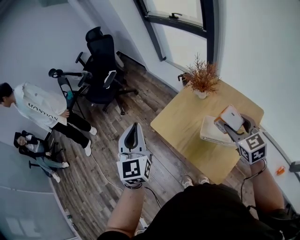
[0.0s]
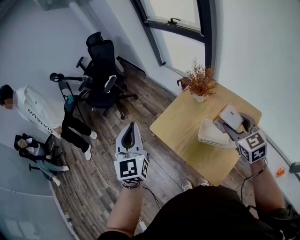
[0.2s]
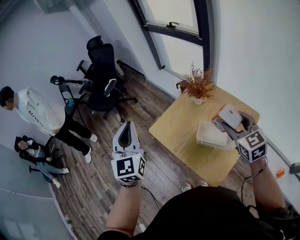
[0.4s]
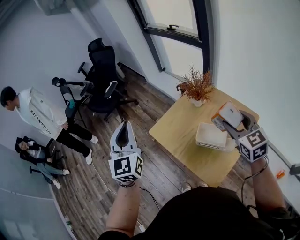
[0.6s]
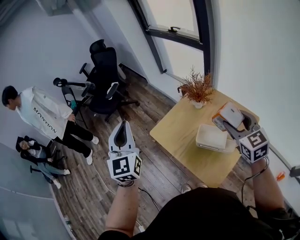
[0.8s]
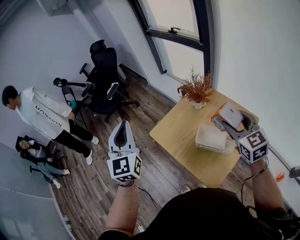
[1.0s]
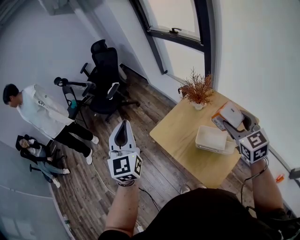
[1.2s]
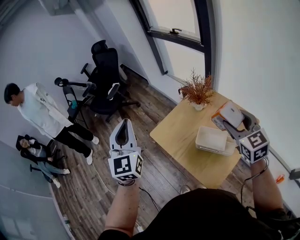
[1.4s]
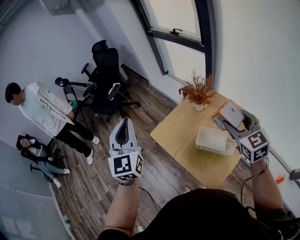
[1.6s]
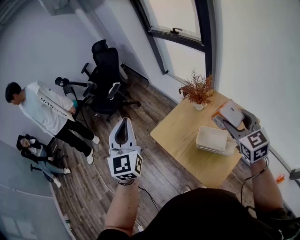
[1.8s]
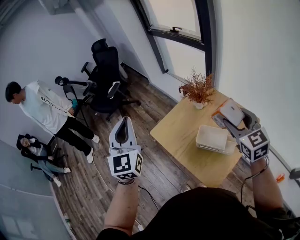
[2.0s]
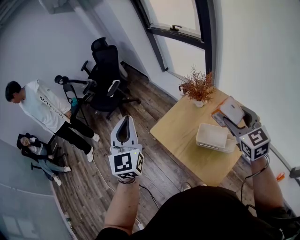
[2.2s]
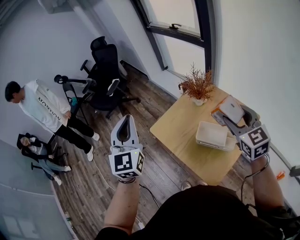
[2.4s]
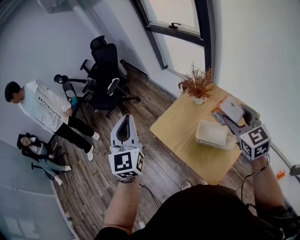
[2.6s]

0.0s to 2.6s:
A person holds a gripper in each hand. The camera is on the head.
0.0s to 1.2s: The grippers both shift upward by some 10 cm.
1.2s to 2.6s: There are only small adjustments of the grippers.

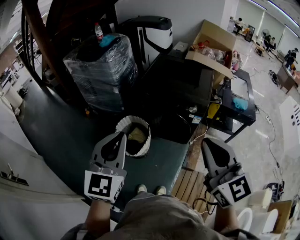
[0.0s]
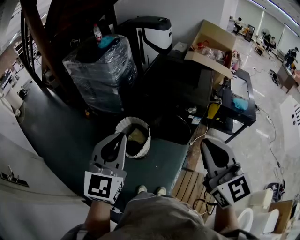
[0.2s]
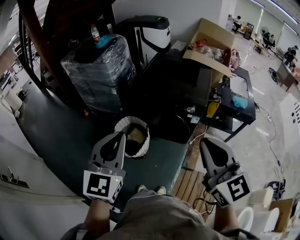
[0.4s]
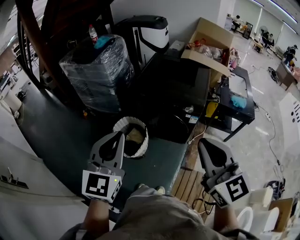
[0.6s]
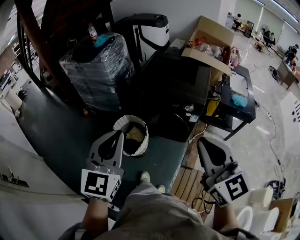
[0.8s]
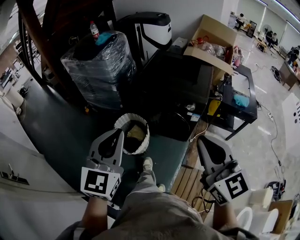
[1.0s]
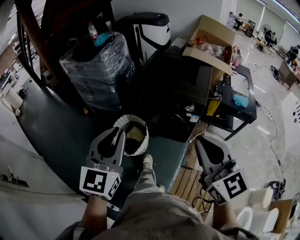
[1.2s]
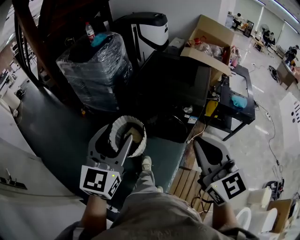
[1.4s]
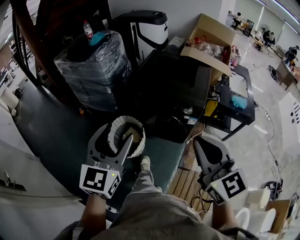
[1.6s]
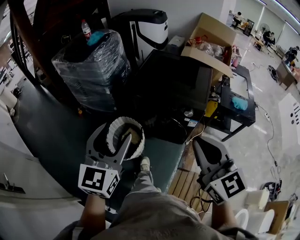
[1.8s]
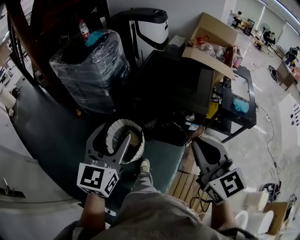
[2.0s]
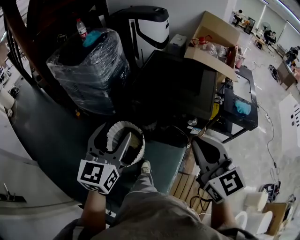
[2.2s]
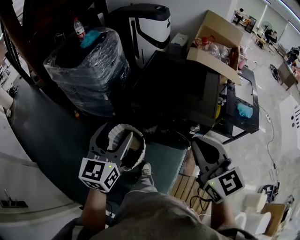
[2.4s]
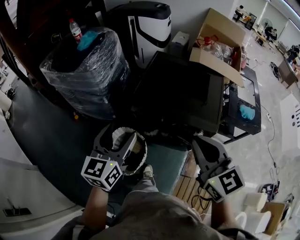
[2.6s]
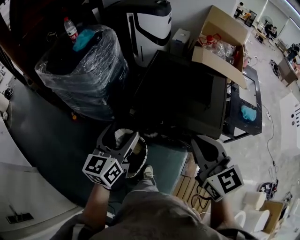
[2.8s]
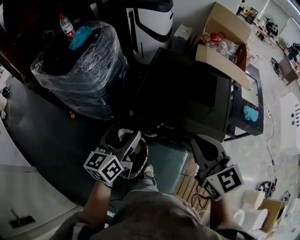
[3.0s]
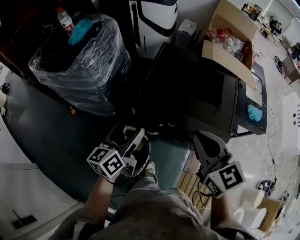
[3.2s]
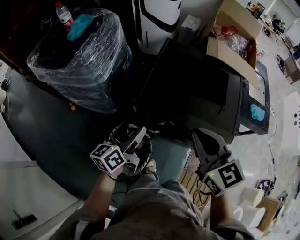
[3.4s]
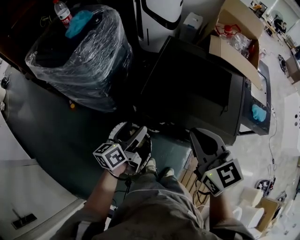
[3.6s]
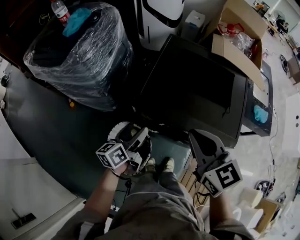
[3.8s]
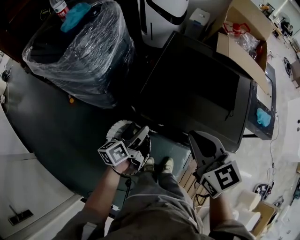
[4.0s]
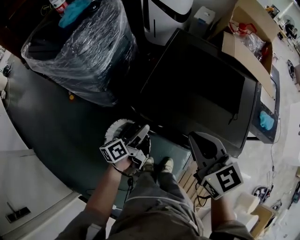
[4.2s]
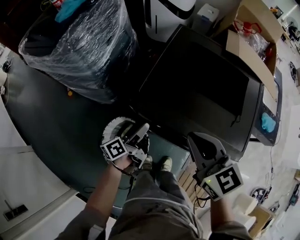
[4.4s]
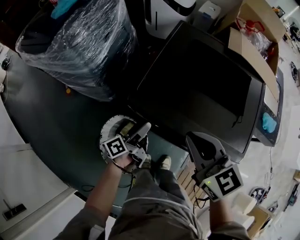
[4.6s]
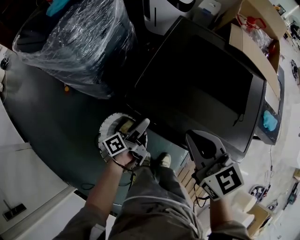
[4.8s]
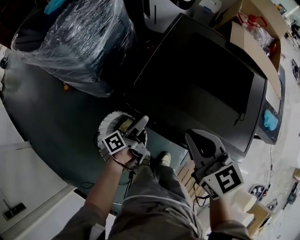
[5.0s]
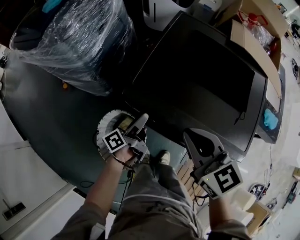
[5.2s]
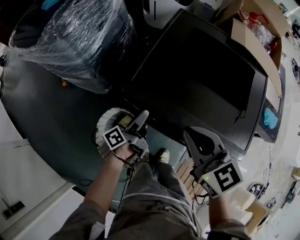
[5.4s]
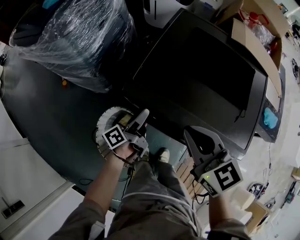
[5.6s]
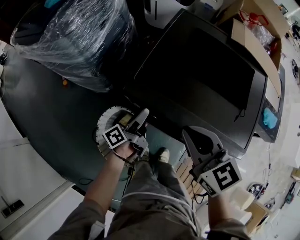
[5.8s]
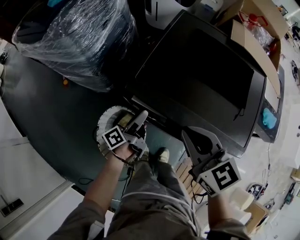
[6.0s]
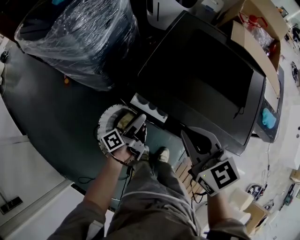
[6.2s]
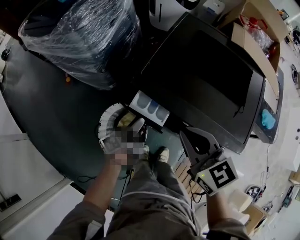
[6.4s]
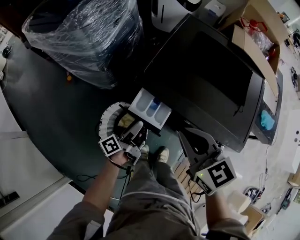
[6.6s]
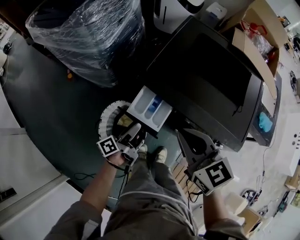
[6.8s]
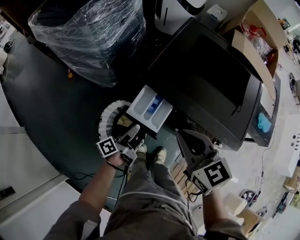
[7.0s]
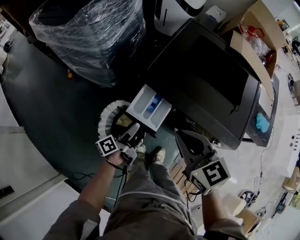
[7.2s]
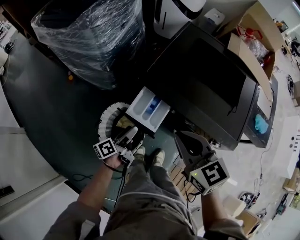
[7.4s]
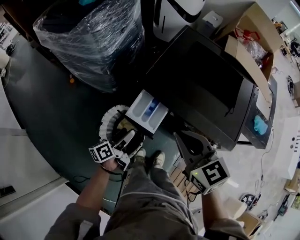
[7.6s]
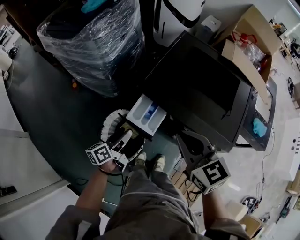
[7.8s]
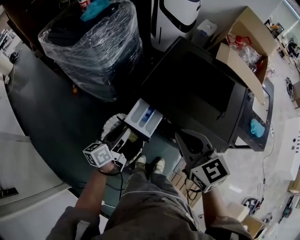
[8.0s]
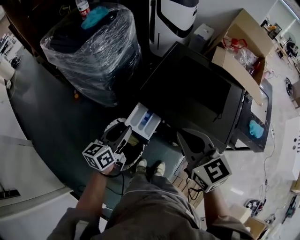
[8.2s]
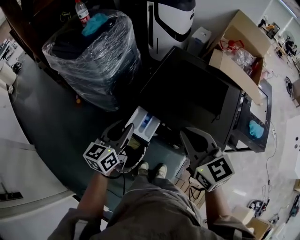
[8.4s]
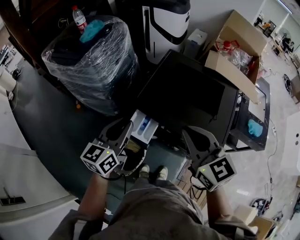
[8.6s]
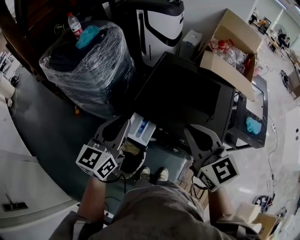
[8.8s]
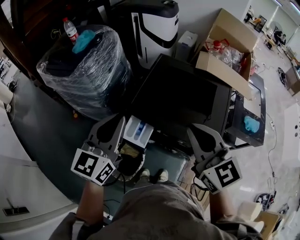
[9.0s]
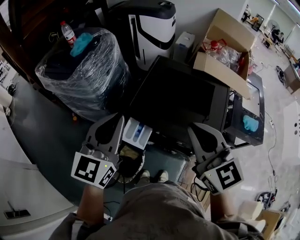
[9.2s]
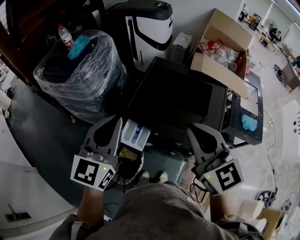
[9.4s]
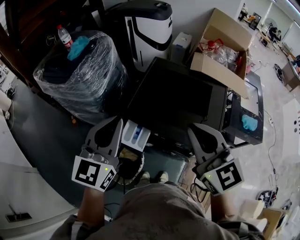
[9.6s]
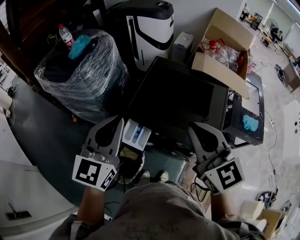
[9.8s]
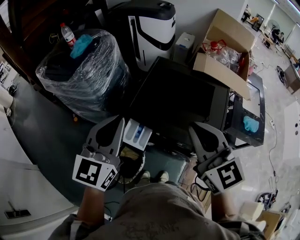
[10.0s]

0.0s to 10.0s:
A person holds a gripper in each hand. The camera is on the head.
0.0s to 1.4s: The right gripper ends up roughly 5 cm from where it was; the left gripper goes approximately 5 cm forward, and opens its fingers.
1.4s to 2.8s: Both grippers travel together forward, some 30 cm. The left gripper turns by some 30 degrees.
2.8s to 4.2s: The right gripper moves forward and downward, about 20 cm, while the left gripper heads downward and forward, covering about 30 cm, and twists about 50 degrees counterclockwise, seen from behind.
4.2s to 5.8s: The two grippers go approximately 5 cm downward. The left gripper turns by roughly 20 degrees.
5.8s to 7.2s: The right gripper shifts about 10 cm backward, while the left gripper is displaced backward and to the left by approximately 15 cm.
7.2s to 8.6s: The left gripper is displaced upward by some 30 cm, rolls clockwise, seen from behind, by approximately 70 degrees, and closes up. Meanwhile the right gripper travels upward and to the right by approximately 15 cm.
8.6s to 10.0s: The left gripper travels upward by some 15 cm, and swivels approximately 20 degrees, while the right gripper is displaced upward by some 10 cm.

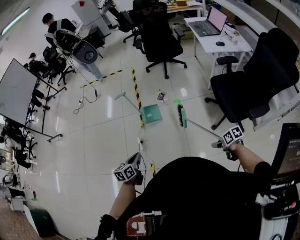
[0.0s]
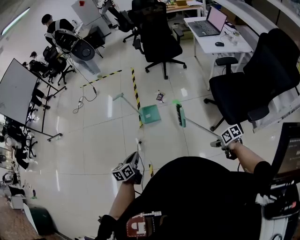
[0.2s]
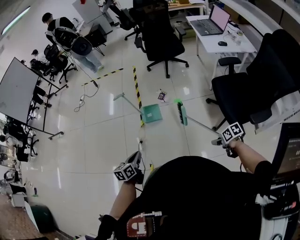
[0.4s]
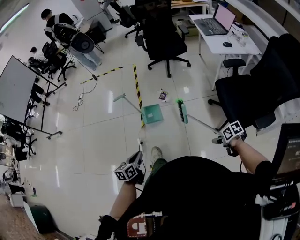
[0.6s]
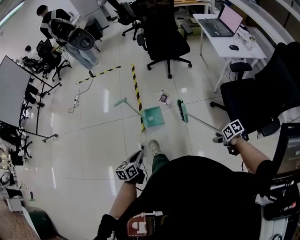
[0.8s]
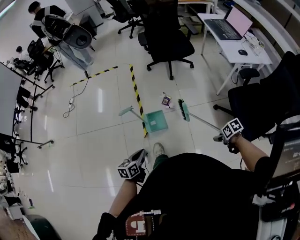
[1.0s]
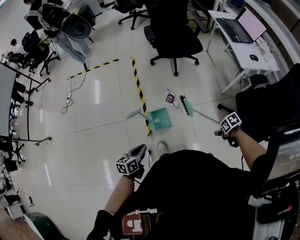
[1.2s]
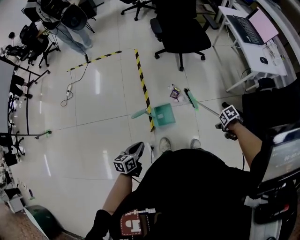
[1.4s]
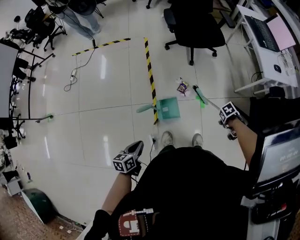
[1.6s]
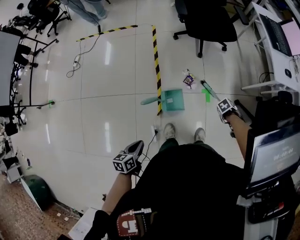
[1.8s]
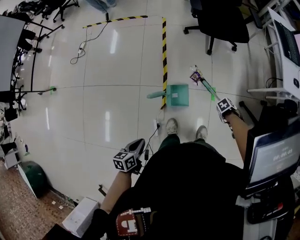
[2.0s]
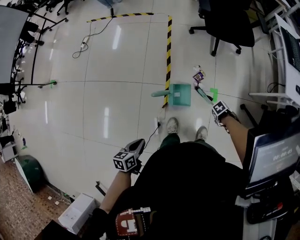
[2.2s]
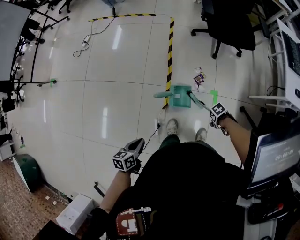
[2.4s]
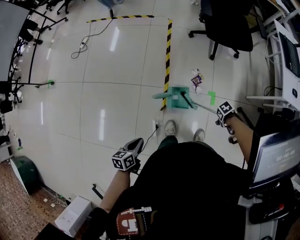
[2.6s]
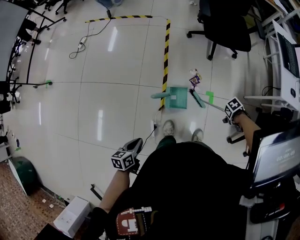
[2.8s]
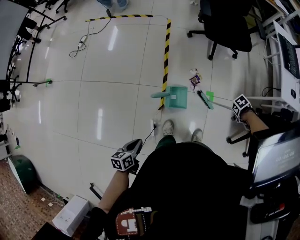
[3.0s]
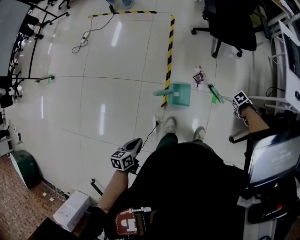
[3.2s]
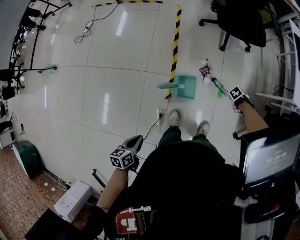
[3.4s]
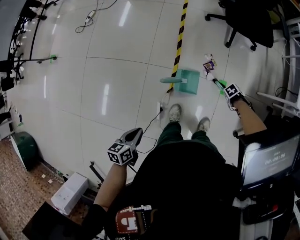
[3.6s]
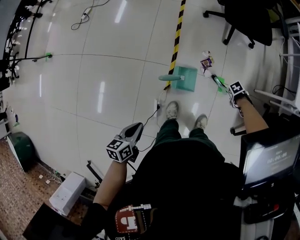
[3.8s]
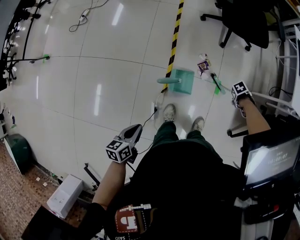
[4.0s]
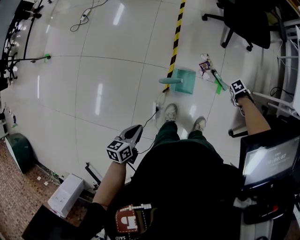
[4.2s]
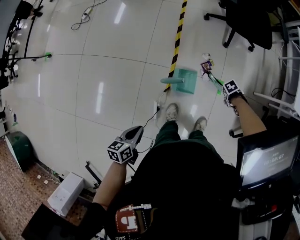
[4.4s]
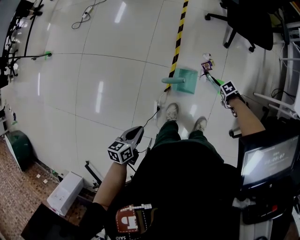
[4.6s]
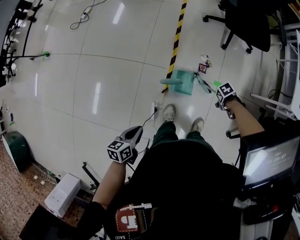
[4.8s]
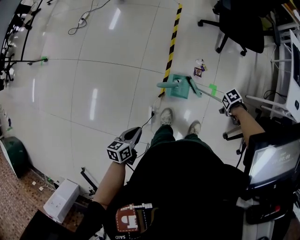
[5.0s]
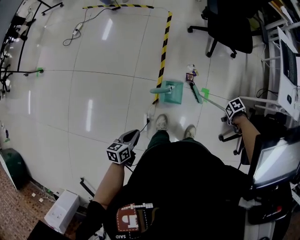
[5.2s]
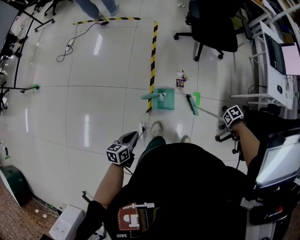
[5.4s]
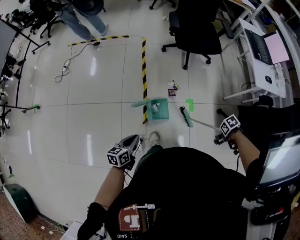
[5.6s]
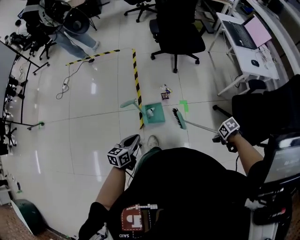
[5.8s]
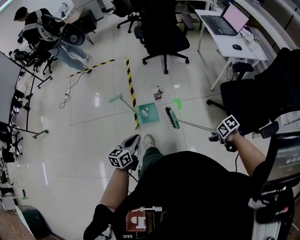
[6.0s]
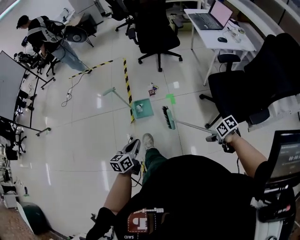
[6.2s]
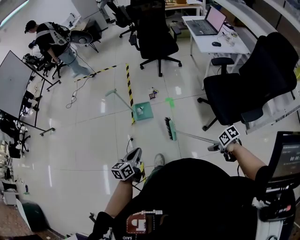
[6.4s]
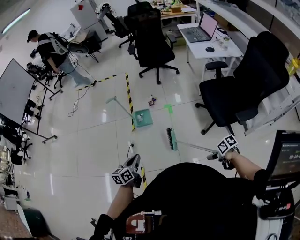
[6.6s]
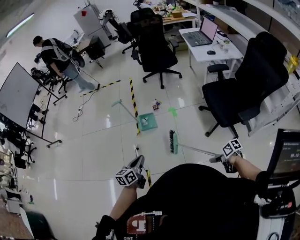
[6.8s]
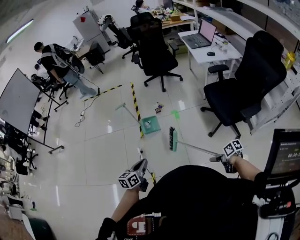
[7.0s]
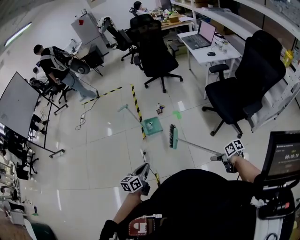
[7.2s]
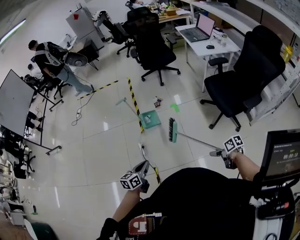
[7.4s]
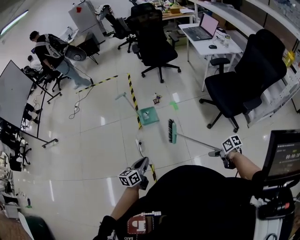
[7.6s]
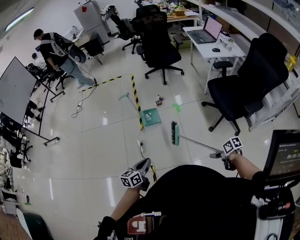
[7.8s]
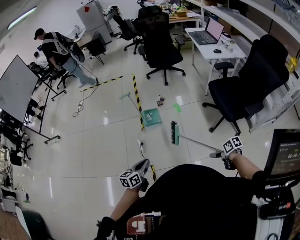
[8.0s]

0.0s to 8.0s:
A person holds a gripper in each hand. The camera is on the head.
0.0s to 1.6s: The left gripper shifts by some 40 cm.
1.6s to 3.2s: The left gripper ends up about 10 cm from where it was.
4.8s to 6.4s: The left gripper moves roughly 50 cm, and swivels about 30 degrees.
6.4s to 8.0s: The left gripper moves roughly 15 cm.

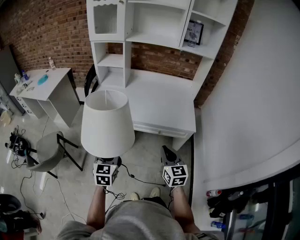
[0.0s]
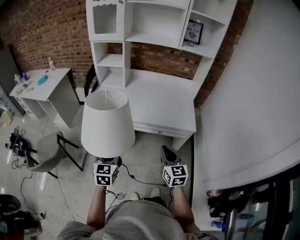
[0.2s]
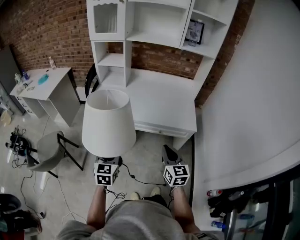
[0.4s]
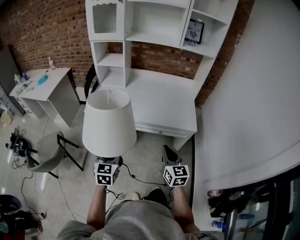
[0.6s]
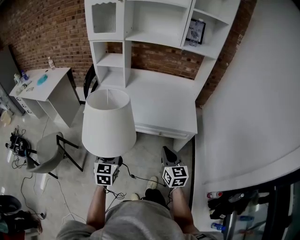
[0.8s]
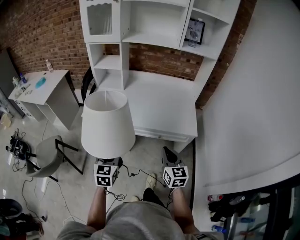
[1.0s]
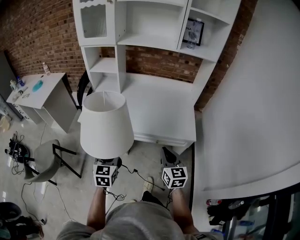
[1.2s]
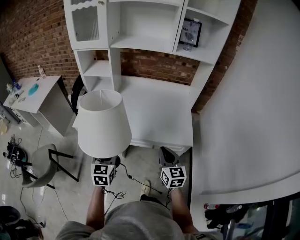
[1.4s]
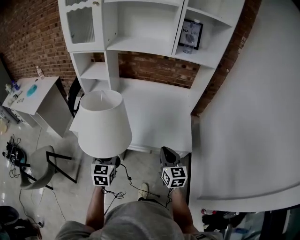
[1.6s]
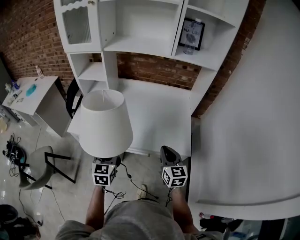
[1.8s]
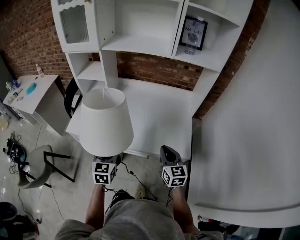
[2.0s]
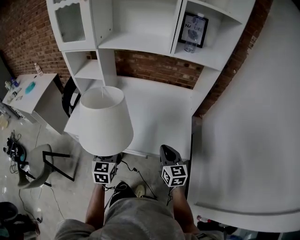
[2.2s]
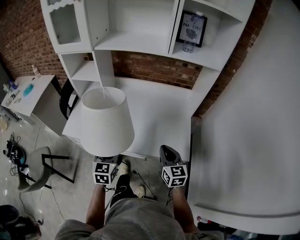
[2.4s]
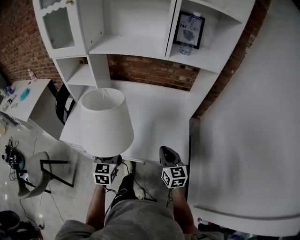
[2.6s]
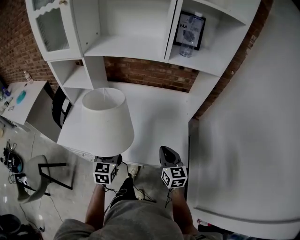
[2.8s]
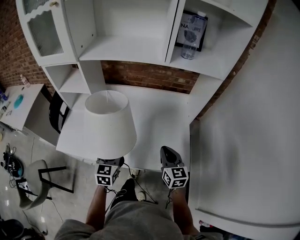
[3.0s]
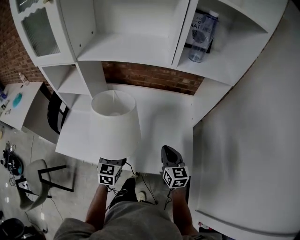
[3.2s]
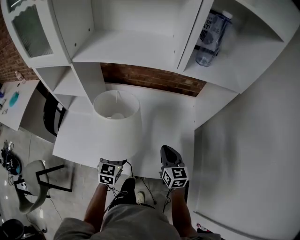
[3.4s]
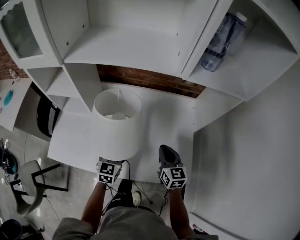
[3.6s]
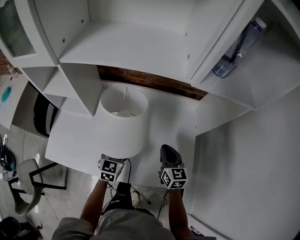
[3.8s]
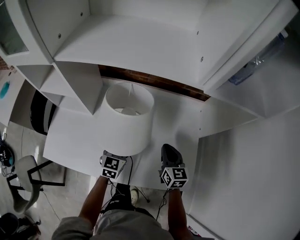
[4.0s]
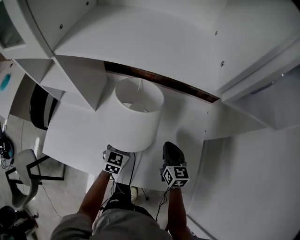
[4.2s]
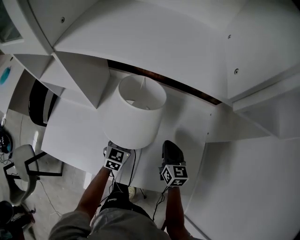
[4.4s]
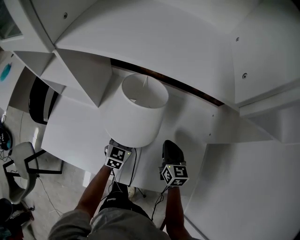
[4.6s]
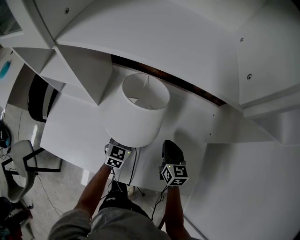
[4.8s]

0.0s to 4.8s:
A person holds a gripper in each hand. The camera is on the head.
0.0s to 1.6s: Both grippers move forward and to the right, some 20 cm.
1.6s to 3.2s: The left gripper travels forward and to the right by roughly 25 cm; the right gripper shifts about 25 cm forward.
3.2s to 4.8s: The grippers both shift forward and downward by some 20 cm.
